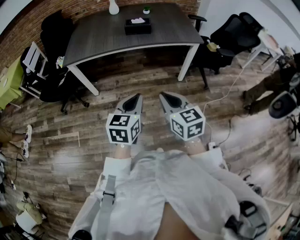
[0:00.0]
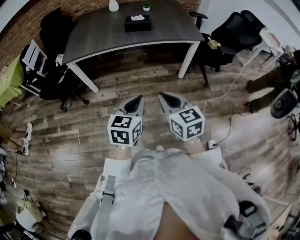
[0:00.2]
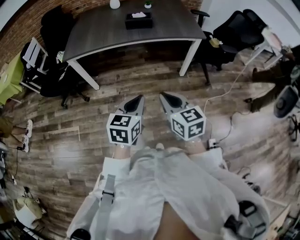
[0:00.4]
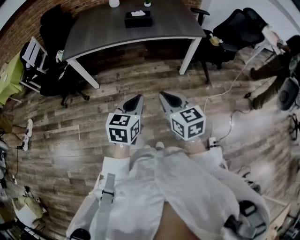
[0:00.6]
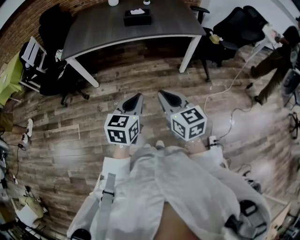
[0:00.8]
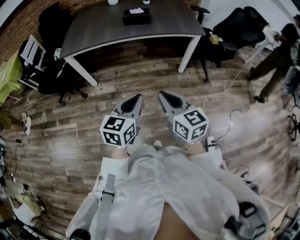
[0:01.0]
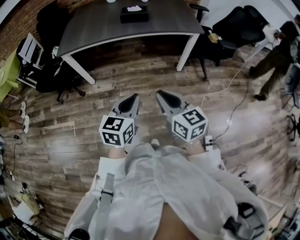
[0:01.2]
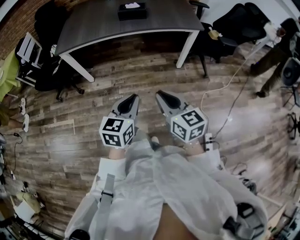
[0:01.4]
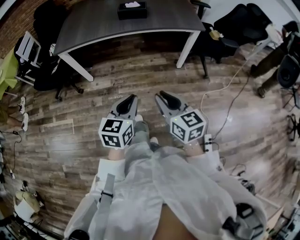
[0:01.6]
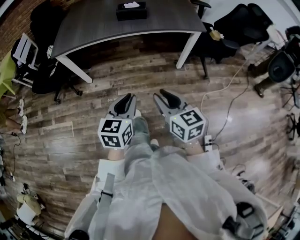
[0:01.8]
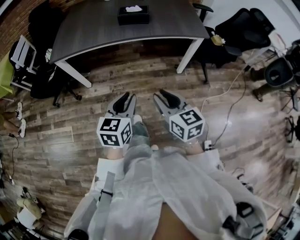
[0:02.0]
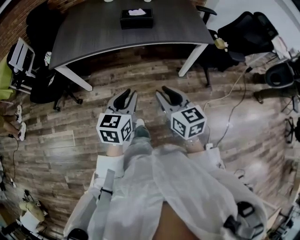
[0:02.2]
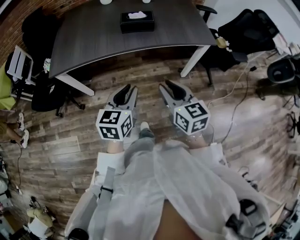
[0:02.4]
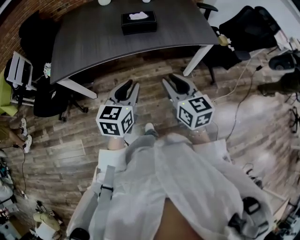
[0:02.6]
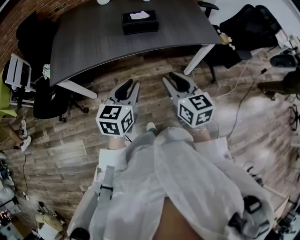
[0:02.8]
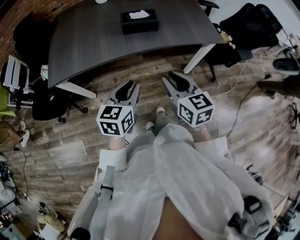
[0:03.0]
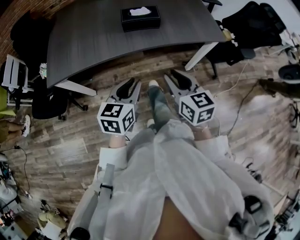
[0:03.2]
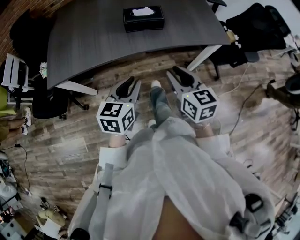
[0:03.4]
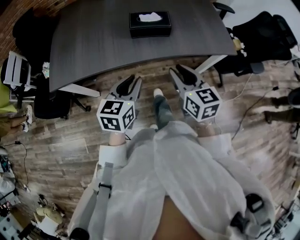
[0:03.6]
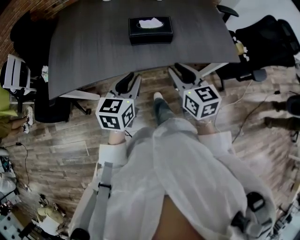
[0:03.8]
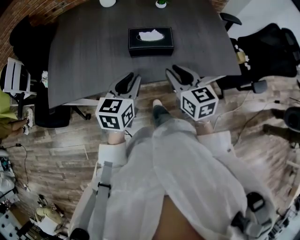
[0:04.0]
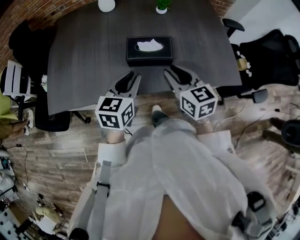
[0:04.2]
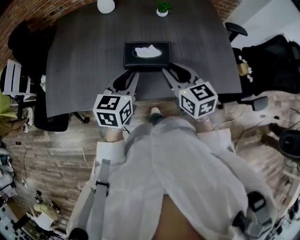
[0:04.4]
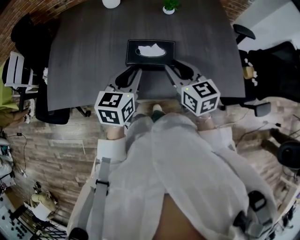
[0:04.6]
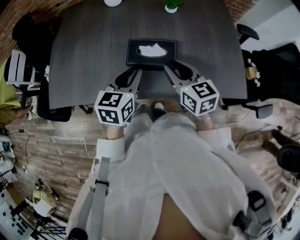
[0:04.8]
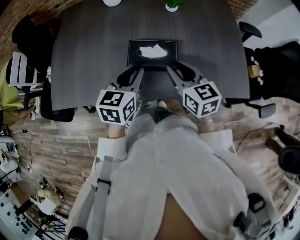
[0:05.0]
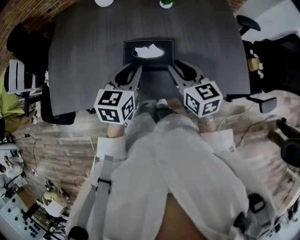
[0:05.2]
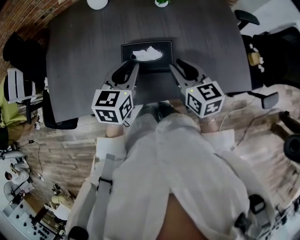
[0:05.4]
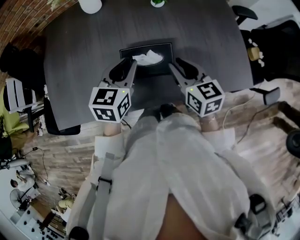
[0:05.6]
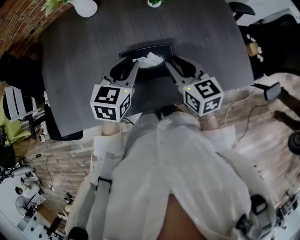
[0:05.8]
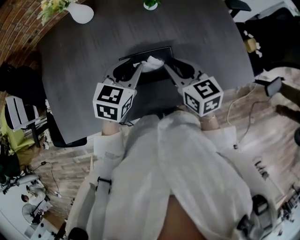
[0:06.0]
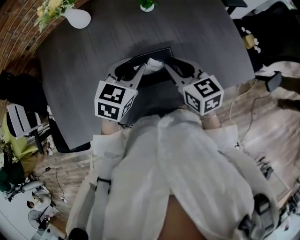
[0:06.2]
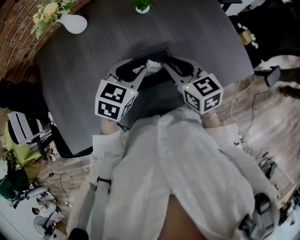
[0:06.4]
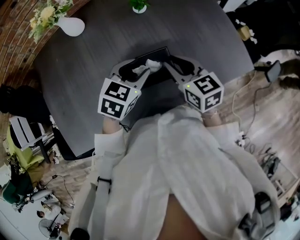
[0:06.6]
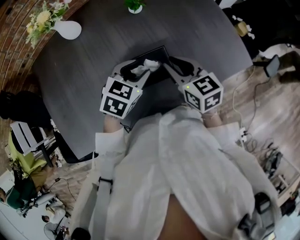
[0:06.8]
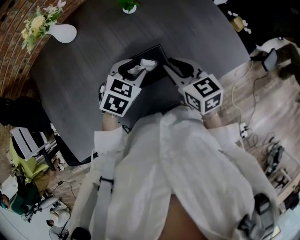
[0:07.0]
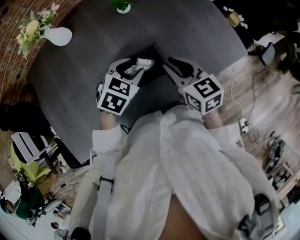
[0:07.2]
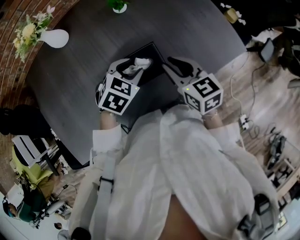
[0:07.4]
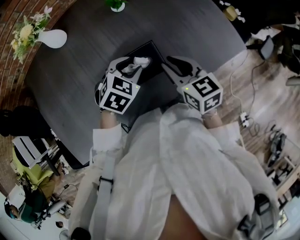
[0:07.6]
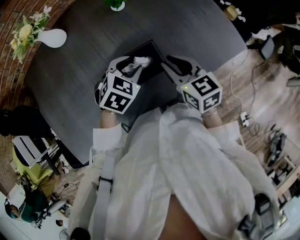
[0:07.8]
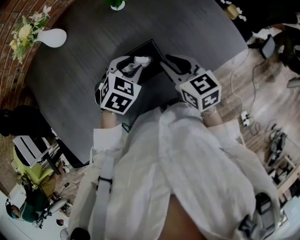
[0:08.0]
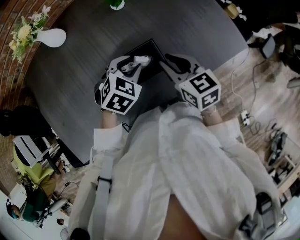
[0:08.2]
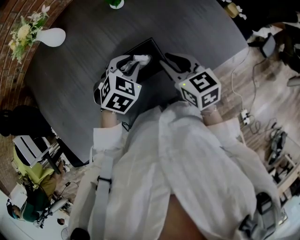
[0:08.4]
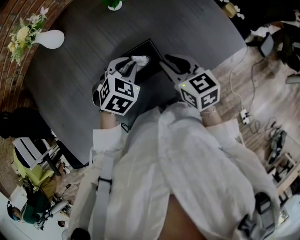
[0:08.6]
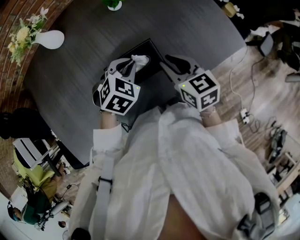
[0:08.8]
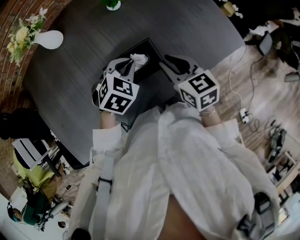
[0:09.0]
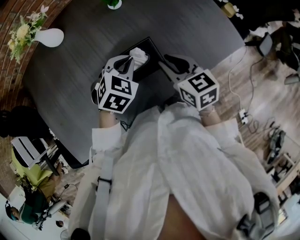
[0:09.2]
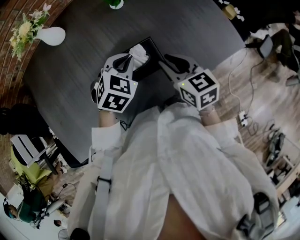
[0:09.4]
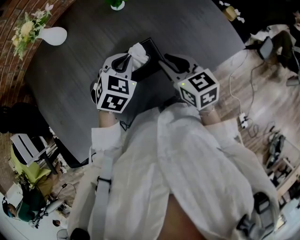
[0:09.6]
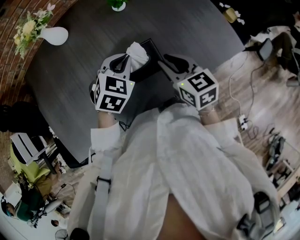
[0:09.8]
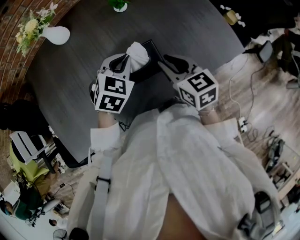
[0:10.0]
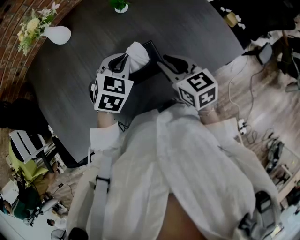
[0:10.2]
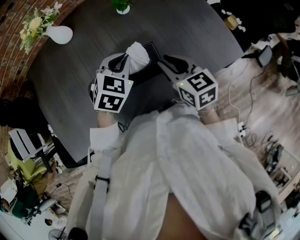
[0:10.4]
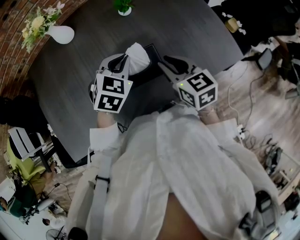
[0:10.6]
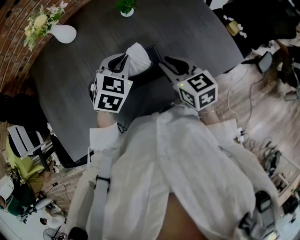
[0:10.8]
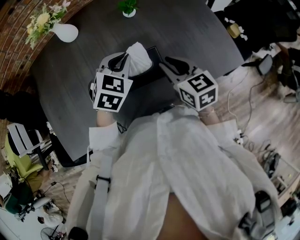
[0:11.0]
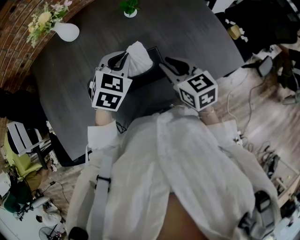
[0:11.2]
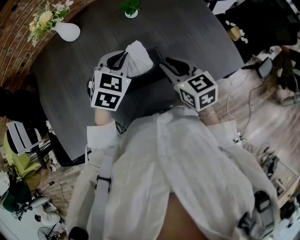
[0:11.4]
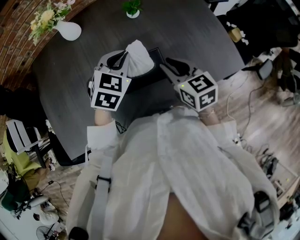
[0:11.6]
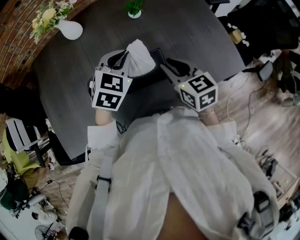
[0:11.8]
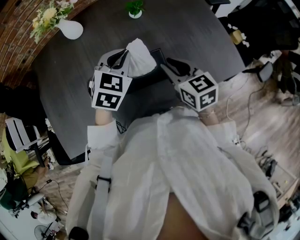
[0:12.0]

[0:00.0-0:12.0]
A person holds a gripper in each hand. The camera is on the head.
0:00.0 to 0:01.6: The right gripper ends up some 5 cm from where it was. Meanwhile the left gripper changes place by roughly 5 cm.
0:01.6 to 0:03.0: Both grippers move forward, about 30 cm.
0:03.0 to 0:04.4: Both grippers travel together forward, approximately 35 cm.
0:04.4 to 0:06.0: Both grippers move forward, some 10 cm. The left gripper rotates approximately 30 degrees.
0:06.0 to 0:07.6: The left gripper travels downward by roughly 5 cm, and rotates about 30 degrees.
0:07.6 to 0:09.0: The left gripper closes its fingers.
0:09.0 to 0:10.4: The left gripper travels upward by approximately 5 cm.
0:10.4 to 0:12.0: The grippers move only a little.

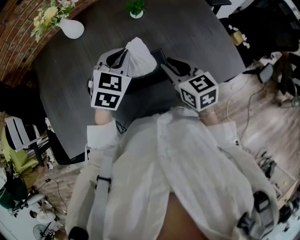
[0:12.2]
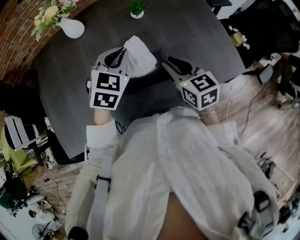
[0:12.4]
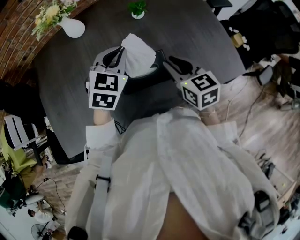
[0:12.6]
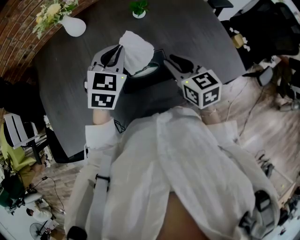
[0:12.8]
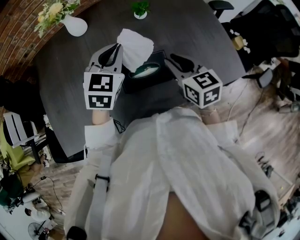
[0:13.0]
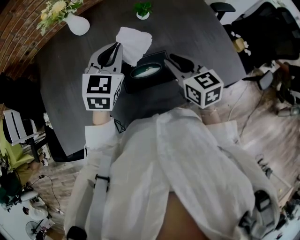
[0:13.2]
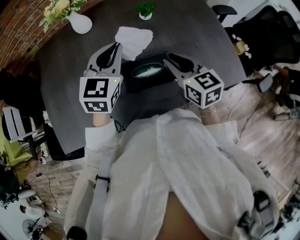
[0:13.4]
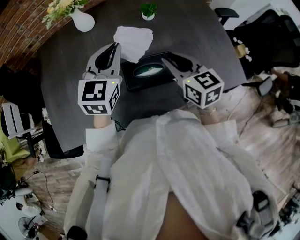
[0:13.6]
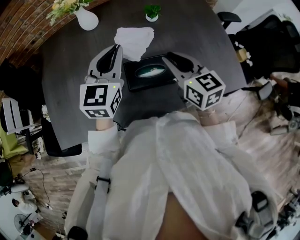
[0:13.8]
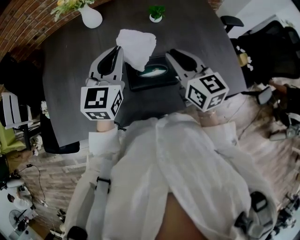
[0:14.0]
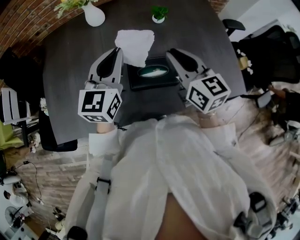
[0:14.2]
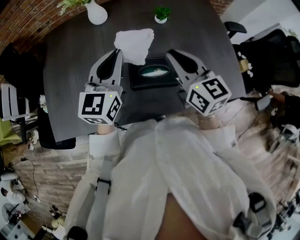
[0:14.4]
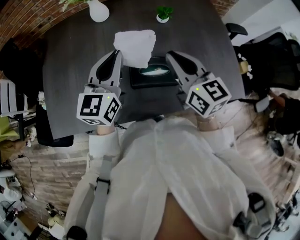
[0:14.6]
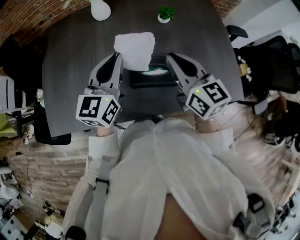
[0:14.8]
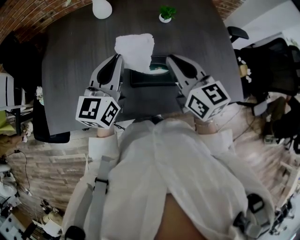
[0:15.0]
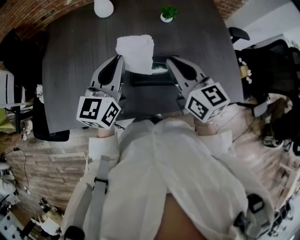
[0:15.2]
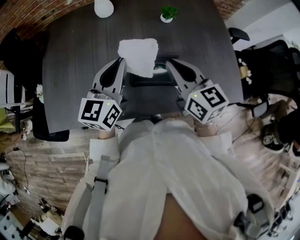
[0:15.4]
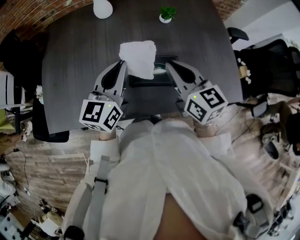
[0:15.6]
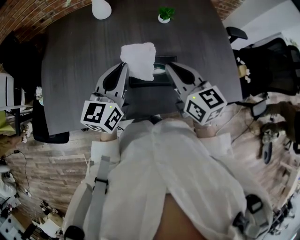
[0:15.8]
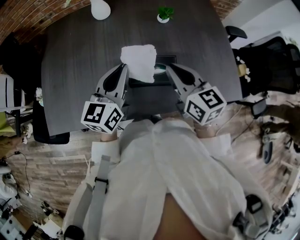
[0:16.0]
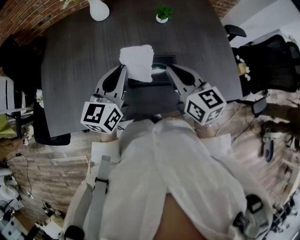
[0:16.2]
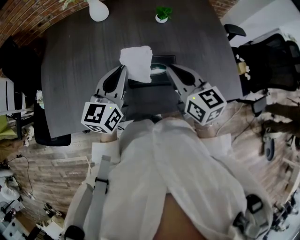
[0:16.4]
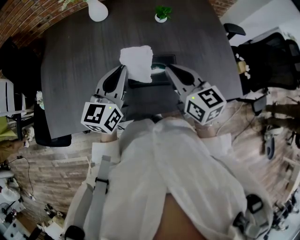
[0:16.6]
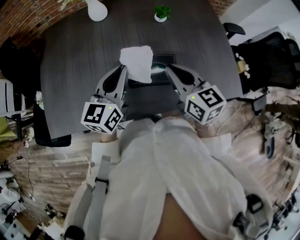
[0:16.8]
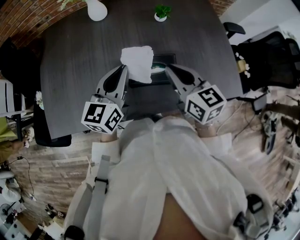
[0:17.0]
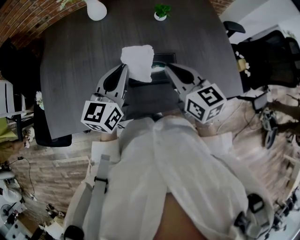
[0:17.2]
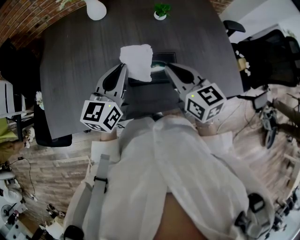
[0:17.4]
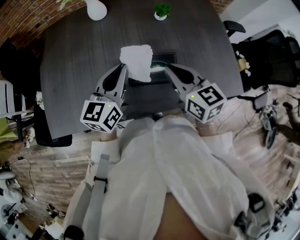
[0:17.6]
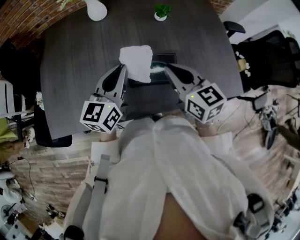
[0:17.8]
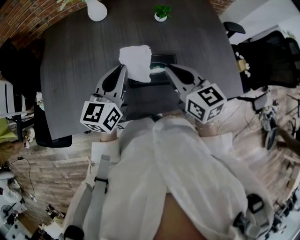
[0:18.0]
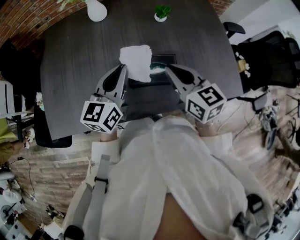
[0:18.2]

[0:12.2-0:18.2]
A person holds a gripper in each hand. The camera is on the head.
0:12.2 to 0:13.8: The left gripper is displaced upward and to the left by some 10 cm, and swivels about 30 degrees, while the right gripper goes roughly 5 cm upward.
0:13.8 to 0:15.2: The right gripper ends up roughly 5 cm from where it was; the left gripper goes roughly 5 cm backward, and changes its angle by about 20 degrees.
0:15.2 to 0:16.6: The grippers make only small movements.
0:16.6 to 0:18.2: Neither gripper changes place.

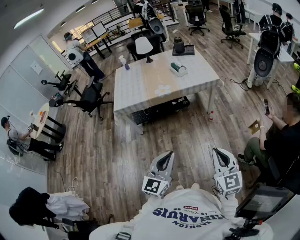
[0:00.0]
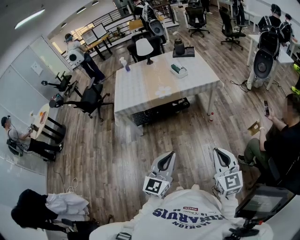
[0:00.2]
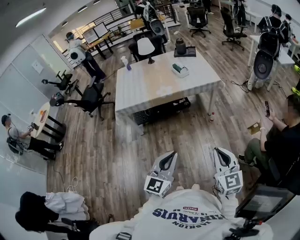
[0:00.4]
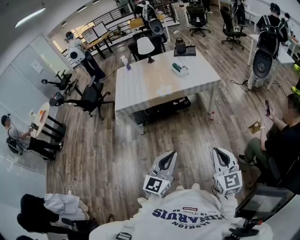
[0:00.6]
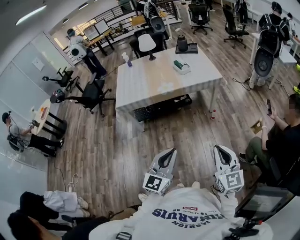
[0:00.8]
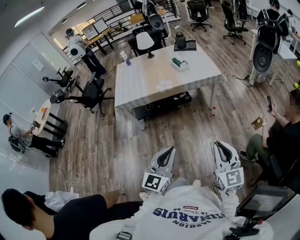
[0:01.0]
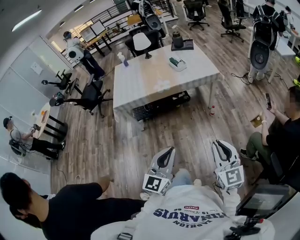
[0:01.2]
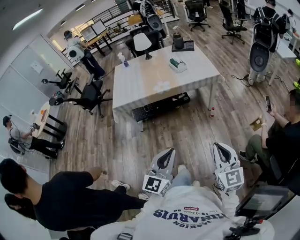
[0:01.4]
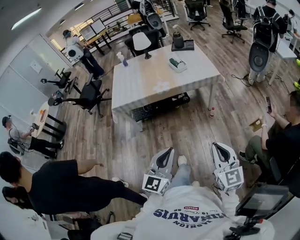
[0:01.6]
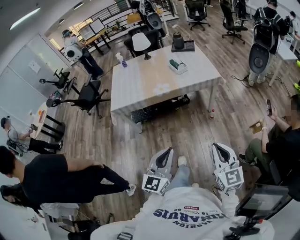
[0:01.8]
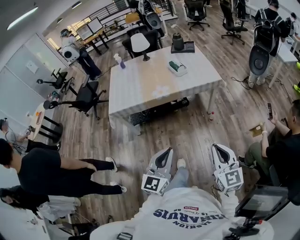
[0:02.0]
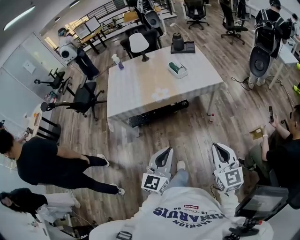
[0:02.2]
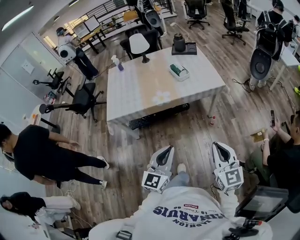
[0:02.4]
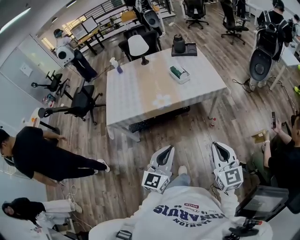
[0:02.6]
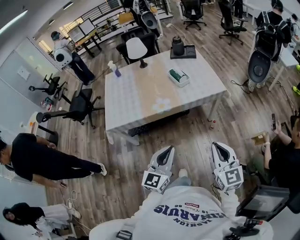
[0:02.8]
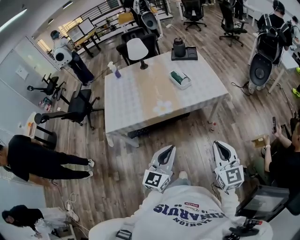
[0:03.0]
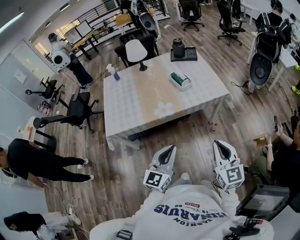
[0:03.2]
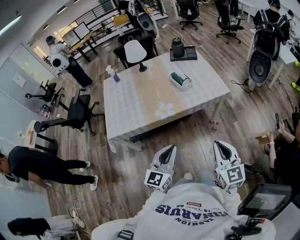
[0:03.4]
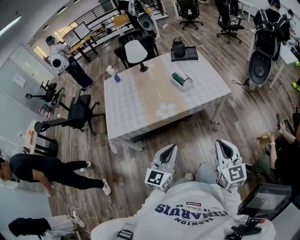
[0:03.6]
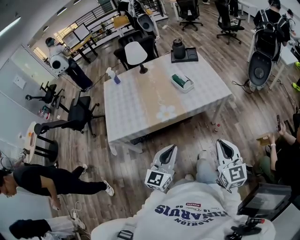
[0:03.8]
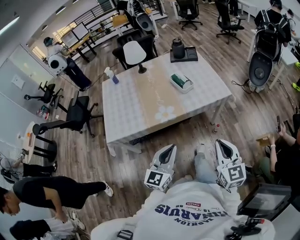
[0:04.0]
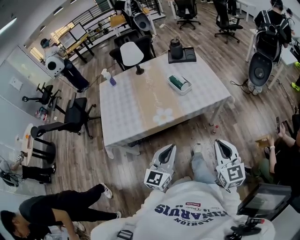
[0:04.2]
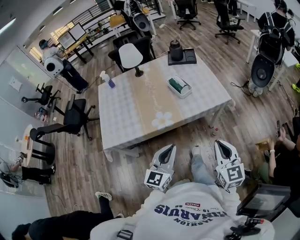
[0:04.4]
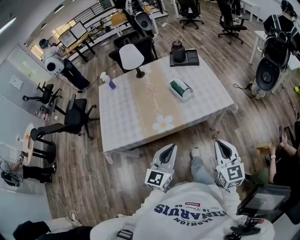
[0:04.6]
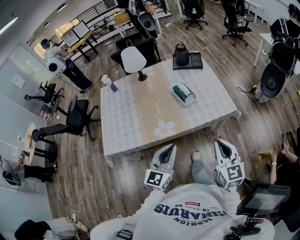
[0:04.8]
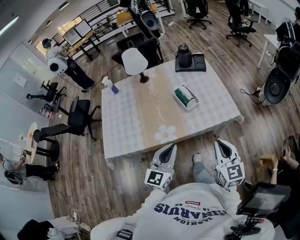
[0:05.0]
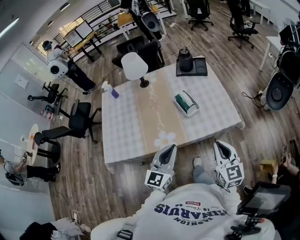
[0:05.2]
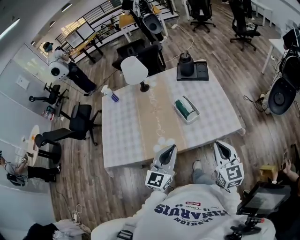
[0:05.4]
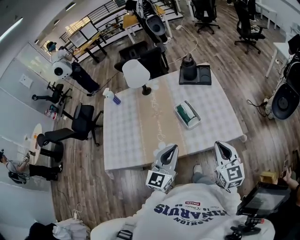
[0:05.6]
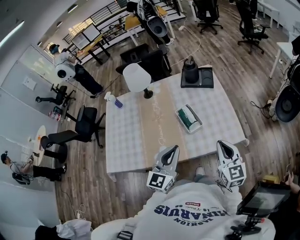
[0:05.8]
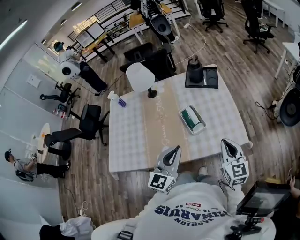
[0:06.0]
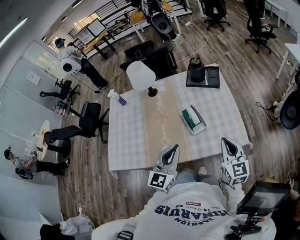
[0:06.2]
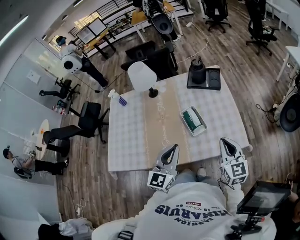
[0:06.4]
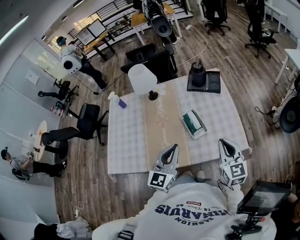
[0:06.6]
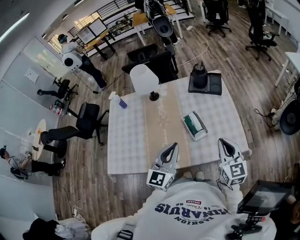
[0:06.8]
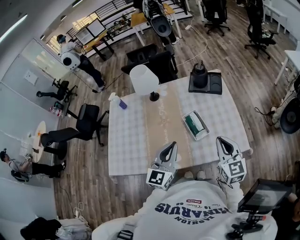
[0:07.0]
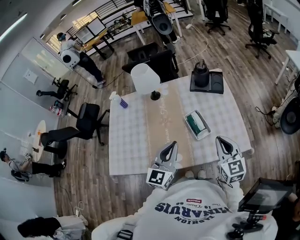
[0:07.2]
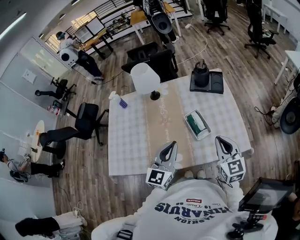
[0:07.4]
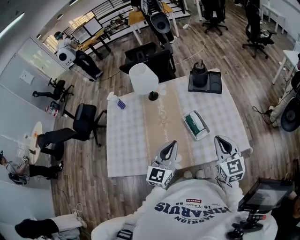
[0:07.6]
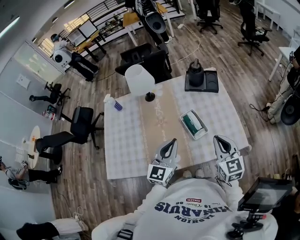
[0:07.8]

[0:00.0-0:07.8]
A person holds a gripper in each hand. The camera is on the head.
0:00.0 to 0:01.6: There are only small adjustments of the grippers.
0:01.6 to 0:03.2: The grippers both shift forward by about 30 cm.
0:03.2 to 0:04.6: Both grippers travel together forward, about 15 cm.
0:04.6 to 0:06.2: The two grippers go approximately 30 cm forward.
0:06.2 to 0:07.8: The right gripper is displaced to the left by approximately 10 cm. The left gripper shifts about 10 cm forward and to the left.
